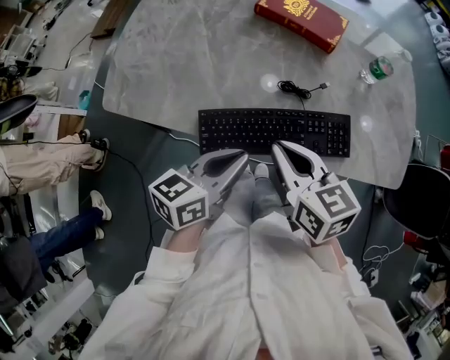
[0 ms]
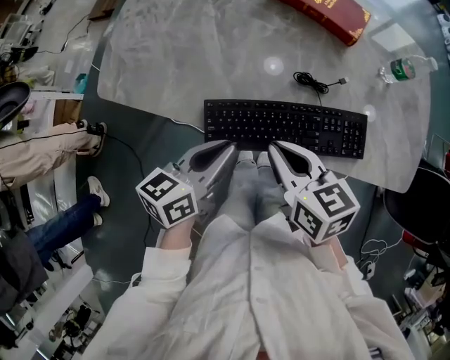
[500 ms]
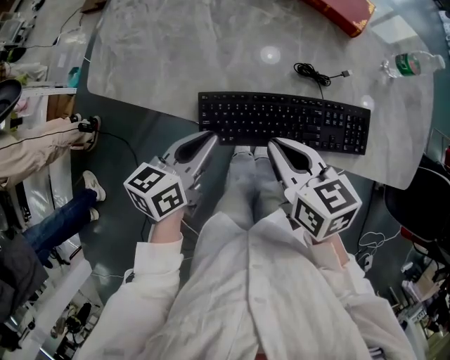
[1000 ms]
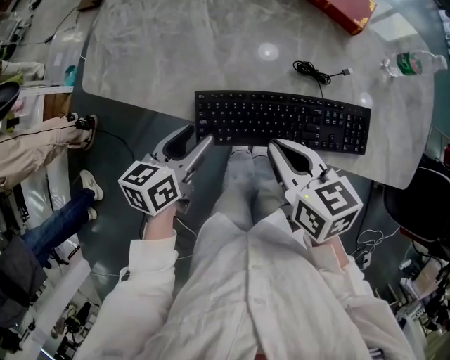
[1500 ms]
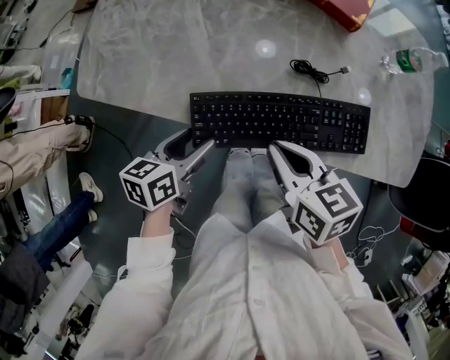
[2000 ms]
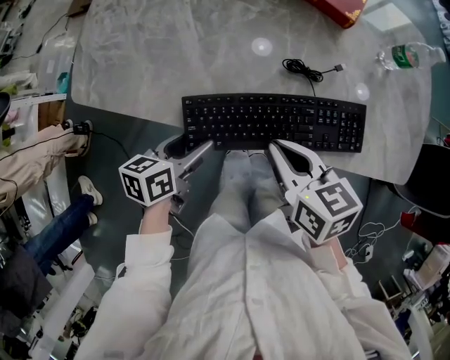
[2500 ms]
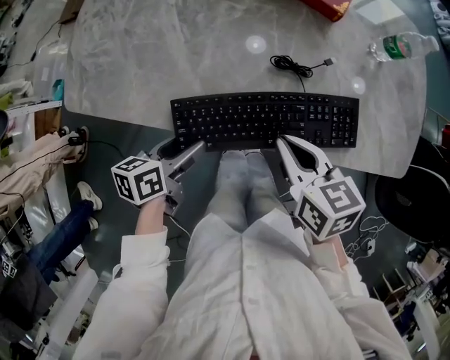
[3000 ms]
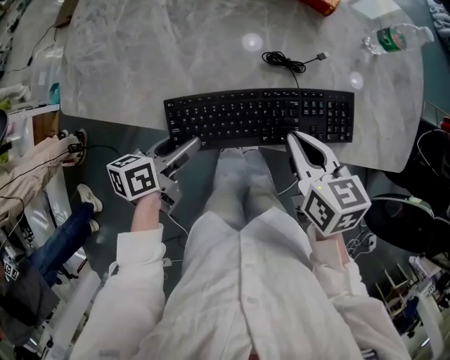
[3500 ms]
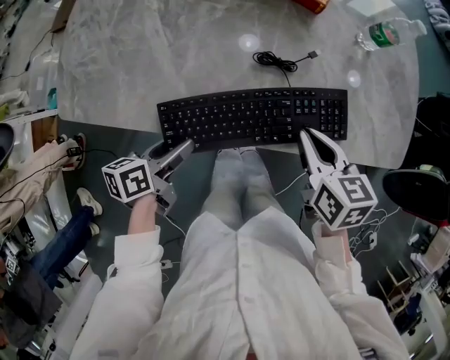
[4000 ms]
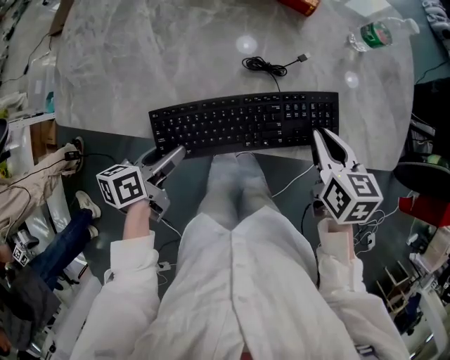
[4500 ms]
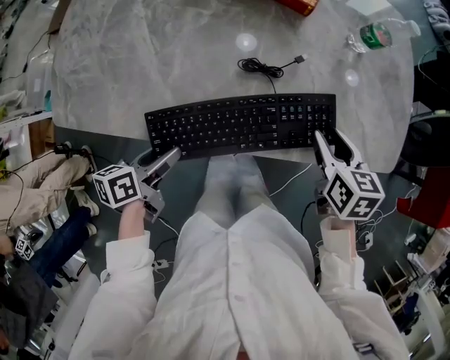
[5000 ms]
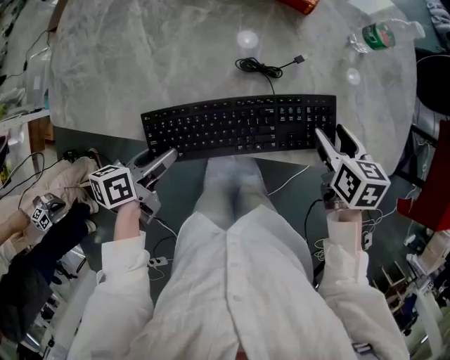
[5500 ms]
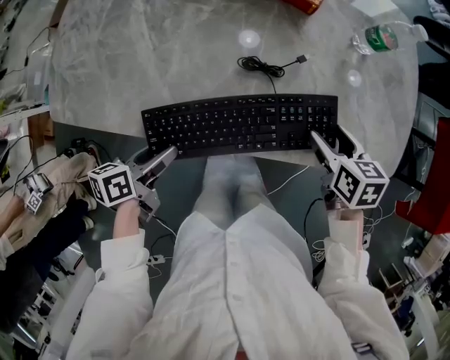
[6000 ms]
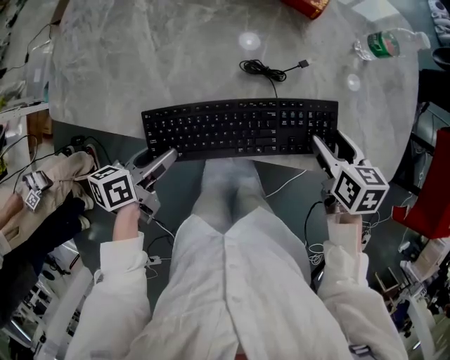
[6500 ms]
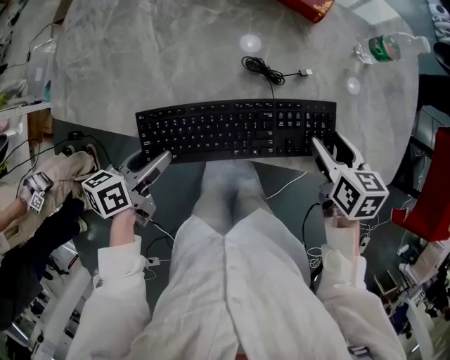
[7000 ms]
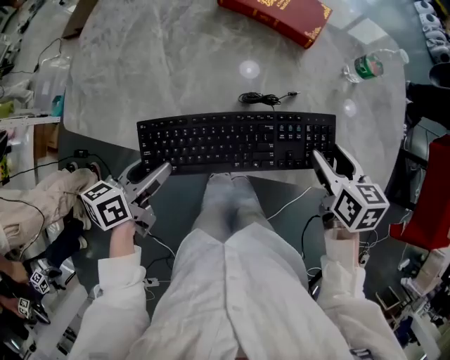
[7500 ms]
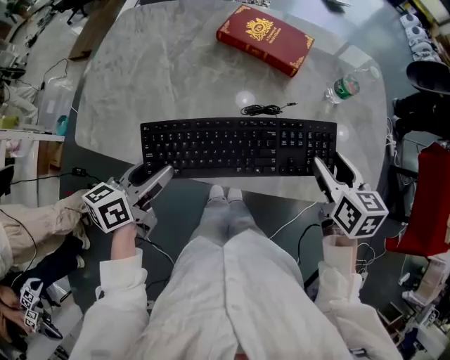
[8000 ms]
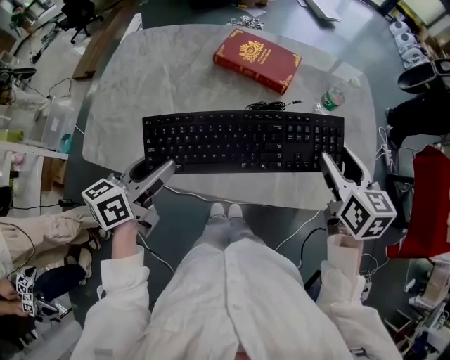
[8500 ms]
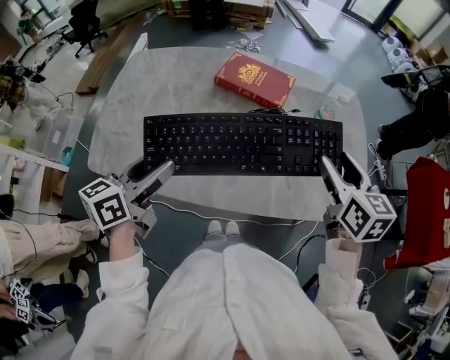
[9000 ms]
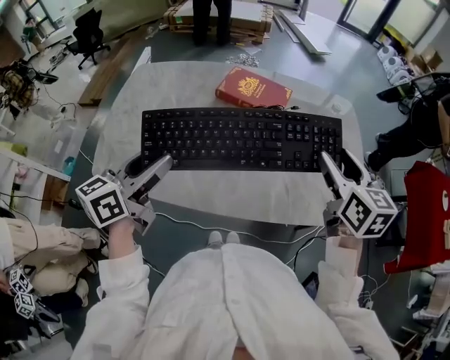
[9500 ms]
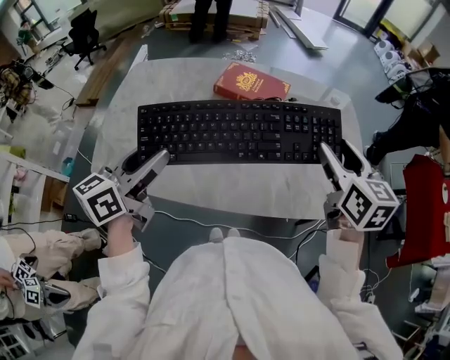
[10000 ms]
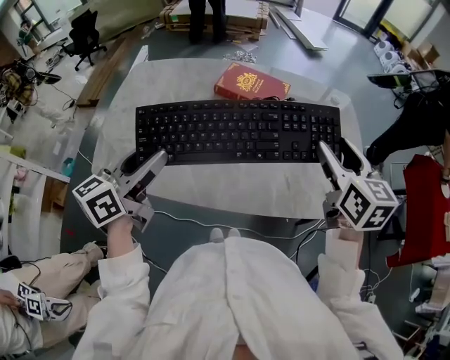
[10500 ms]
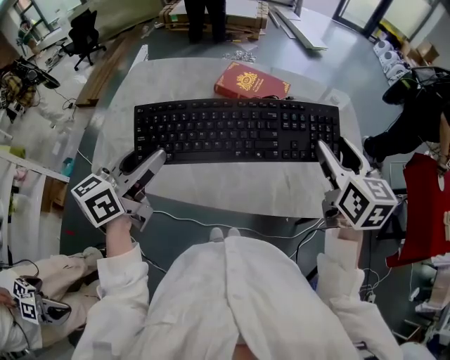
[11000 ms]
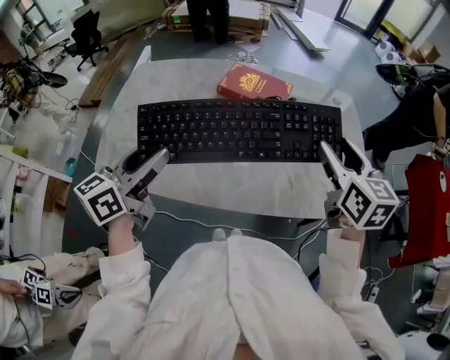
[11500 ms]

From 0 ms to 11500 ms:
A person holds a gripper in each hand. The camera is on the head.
From 0 ms to 2000 ms: The left gripper heads downward and to the left, covering some 15 cm, turns by approximately 20 degrees, and opens; the right gripper shifts about 10 cm downward.
From 2000 ms to 4000 ms: The right gripper heads to the right, covering roughly 15 cm.
From 4000 ms to 6000 ms: The right gripper moves to the right, downward and forward, roughly 10 cm, and opens its fingers.
From 6000 ms to 7500 ms: There are only small adjustments of the grippers.
From 7500 ms to 9500 ms: The grippers make only small movements.
From 9500 ms to 11500 ms: Both grippers stay about where they are.

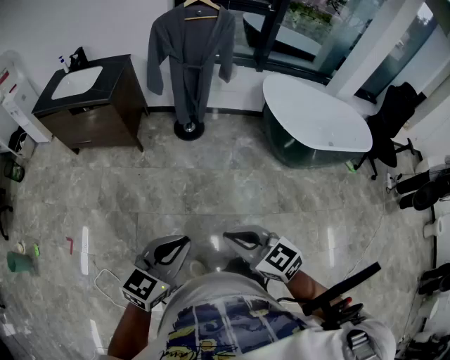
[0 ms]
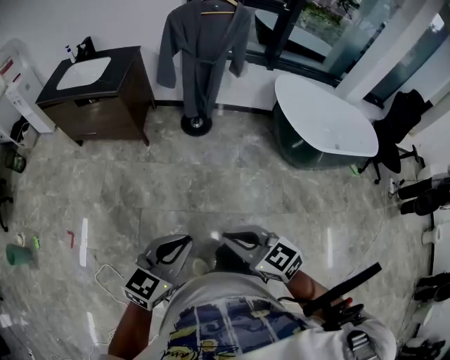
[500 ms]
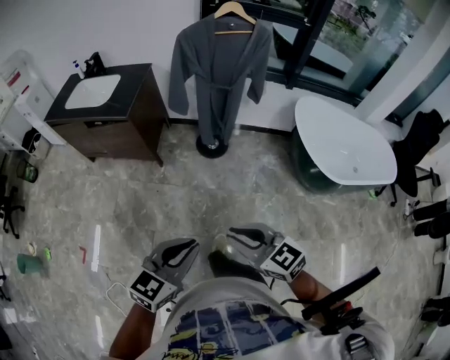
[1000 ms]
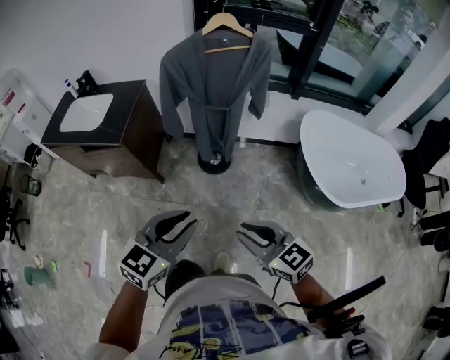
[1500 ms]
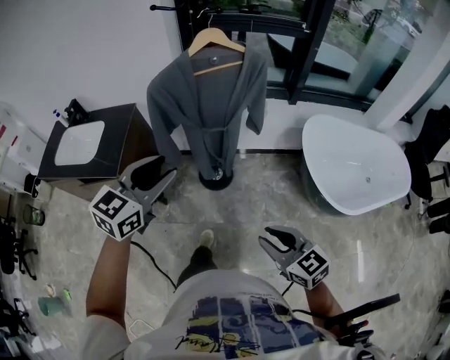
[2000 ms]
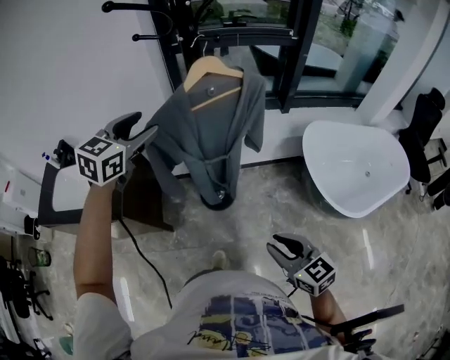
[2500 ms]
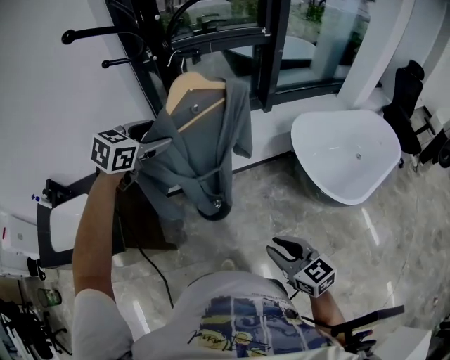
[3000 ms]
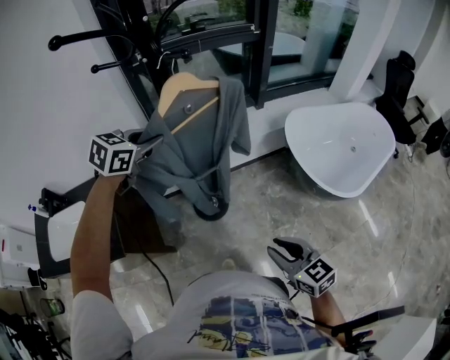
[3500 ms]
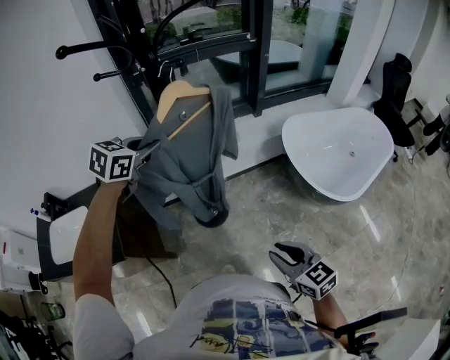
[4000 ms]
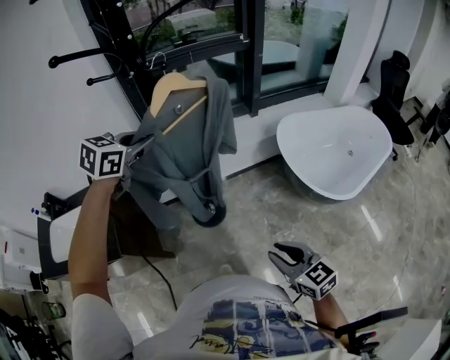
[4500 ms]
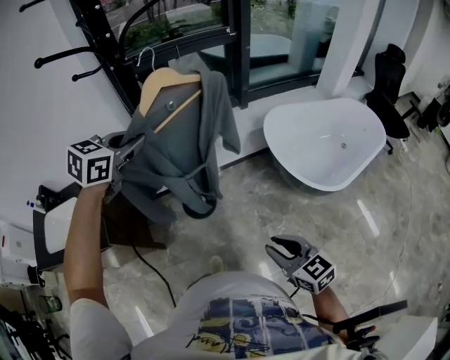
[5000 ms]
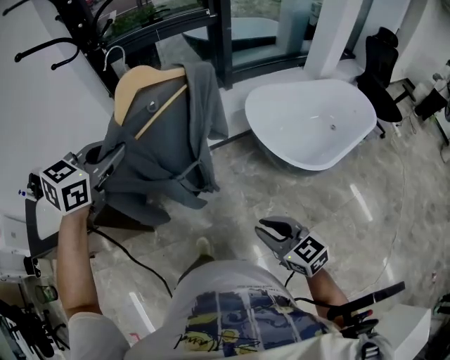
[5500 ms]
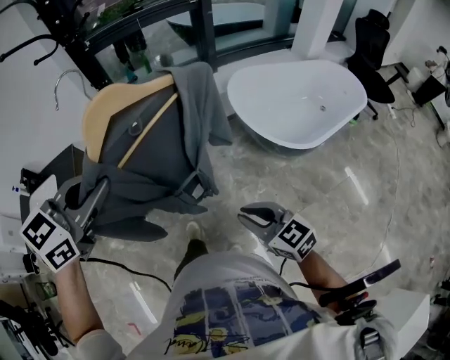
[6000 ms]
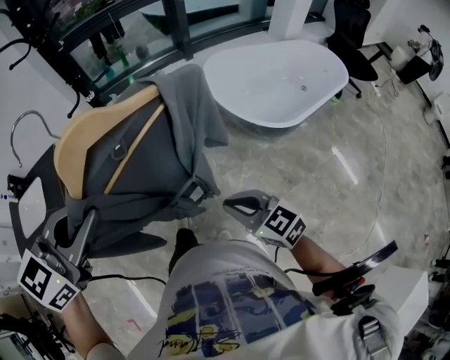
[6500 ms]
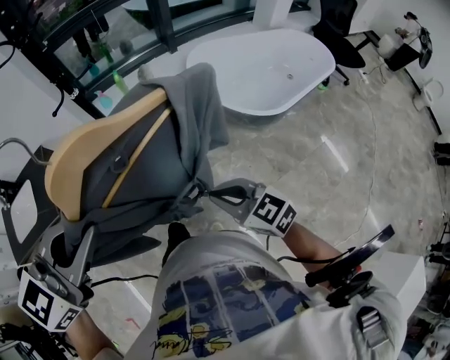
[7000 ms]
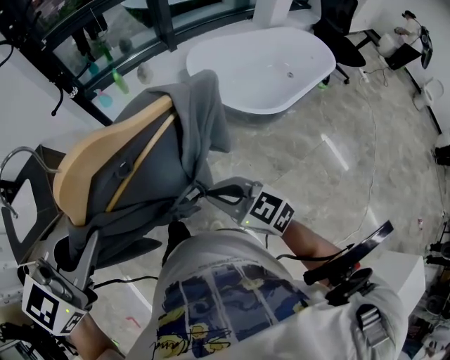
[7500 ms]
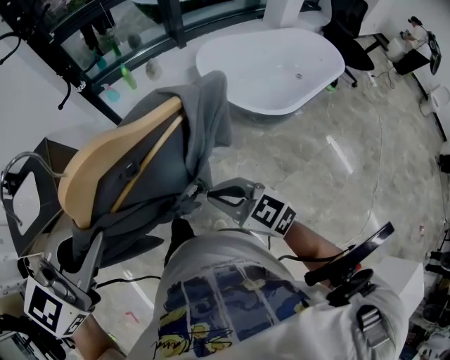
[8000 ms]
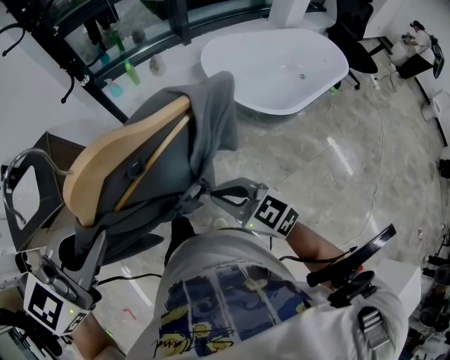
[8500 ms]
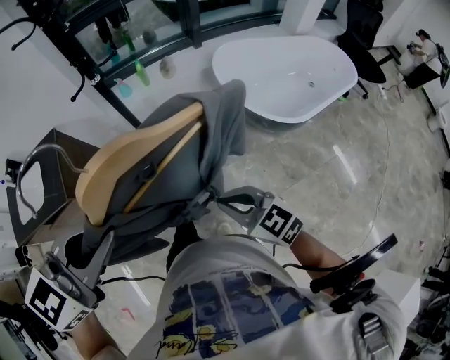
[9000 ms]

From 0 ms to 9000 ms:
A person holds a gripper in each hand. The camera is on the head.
From 0 ms to 2000 ms: The pair of grippers is taken forward, approximately 50 cm. The left gripper opens up. The right gripper opens up.
From 2000 ms to 4500 ms: The left gripper is displaced forward by roughly 25 cm, swivels approximately 30 degrees, and closes its fingers. The right gripper travels forward by some 5 cm, and turns by about 20 degrees.
From 4500 ms to 7000 ms: The left gripper is displaced backward and to the right by some 50 cm. Meanwhile the right gripper is displaced backward and to the right by about 15 cm, and closes.
From 7000 ms to 9000 ms: The grippers stay close to where they were, moving slightly.

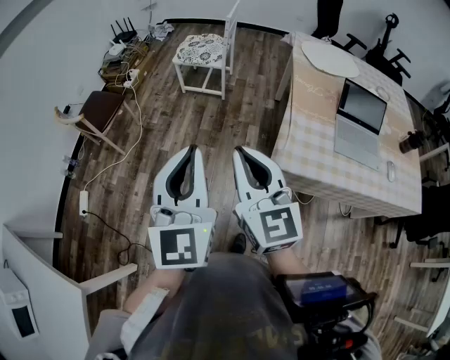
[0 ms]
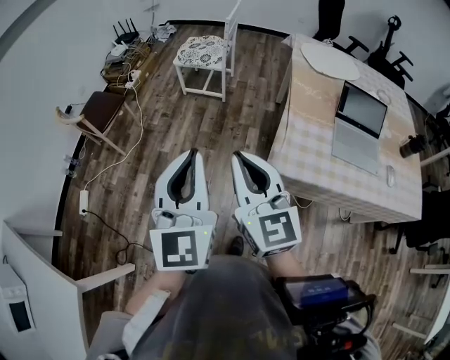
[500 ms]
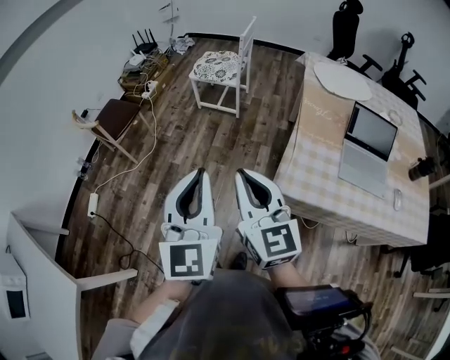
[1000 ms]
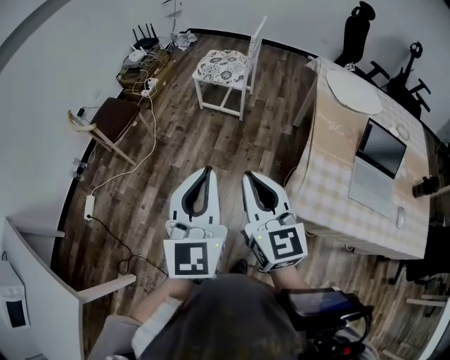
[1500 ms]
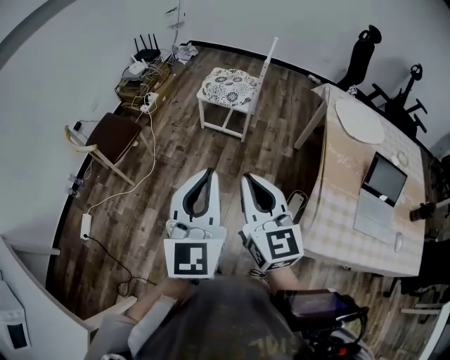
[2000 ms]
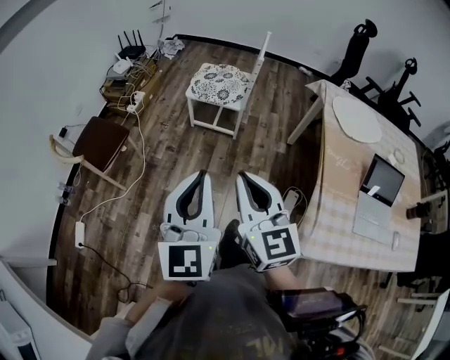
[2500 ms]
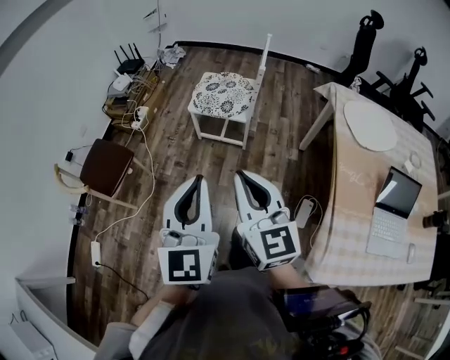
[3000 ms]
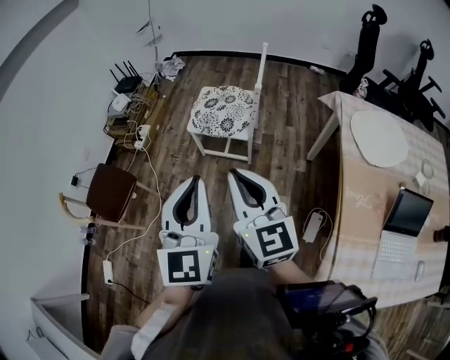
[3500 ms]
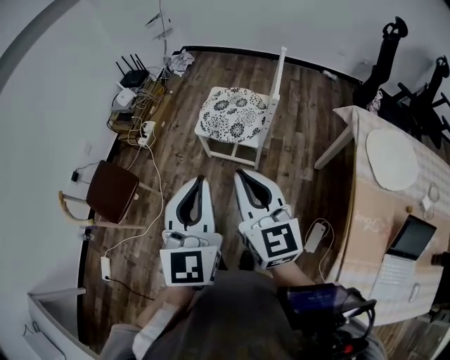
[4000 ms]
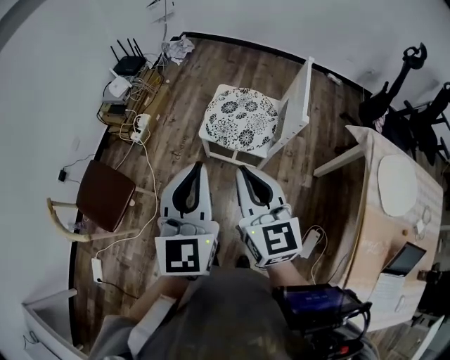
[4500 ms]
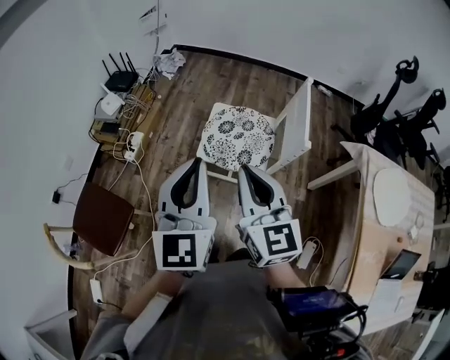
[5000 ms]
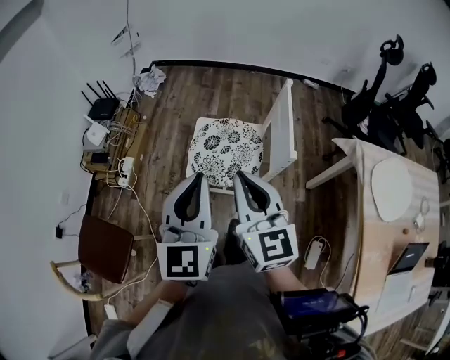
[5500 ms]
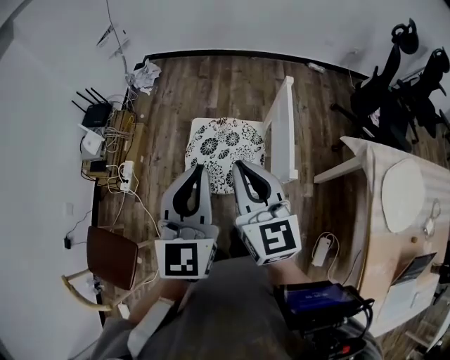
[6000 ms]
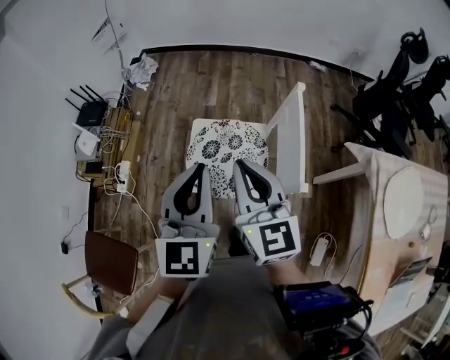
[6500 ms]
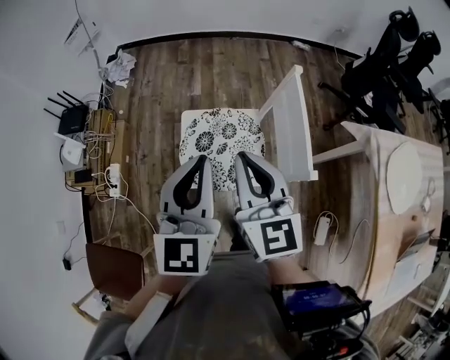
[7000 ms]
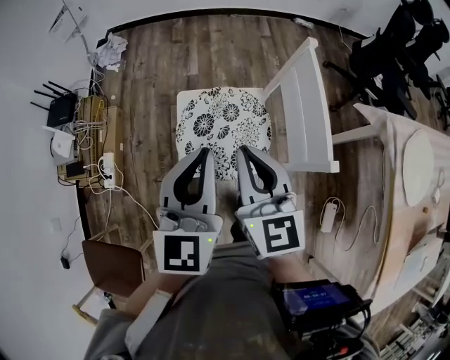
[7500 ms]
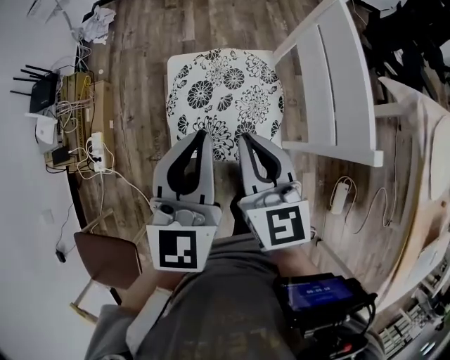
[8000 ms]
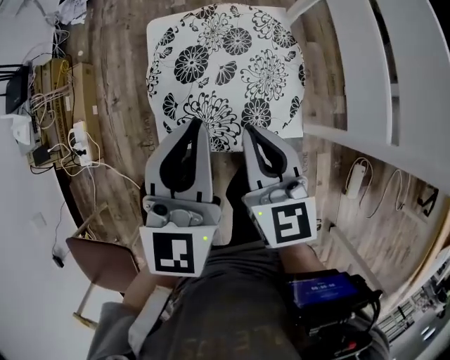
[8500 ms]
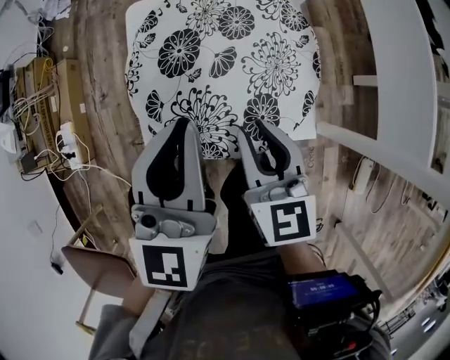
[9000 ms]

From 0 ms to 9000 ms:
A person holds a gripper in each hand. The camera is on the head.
From 0 ms to 2000 ms: Both grippers travel together forward, approximately 20 cm.
From 2000 ms to 4500 ms: The pair of grippers is taken forward, about 50 cm.
From 4500 ms to 7000 ms: Both grippers move forward, some 30 cm. The right gripper turns by some 20 degrees, while the left gripper swivels some 20 degrees.
From 7000 ms to 9000 ms: The grippers both shift downward by approximately 40 cm.
